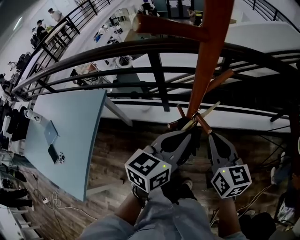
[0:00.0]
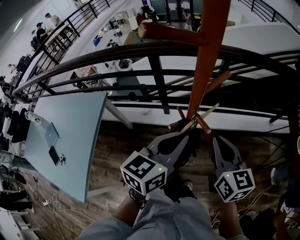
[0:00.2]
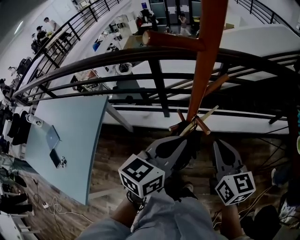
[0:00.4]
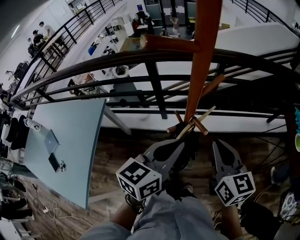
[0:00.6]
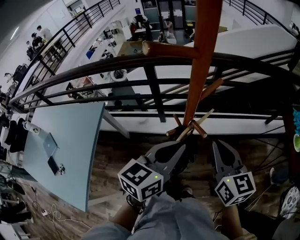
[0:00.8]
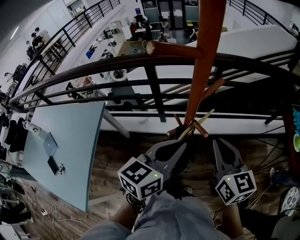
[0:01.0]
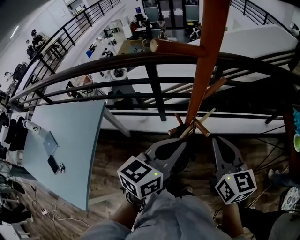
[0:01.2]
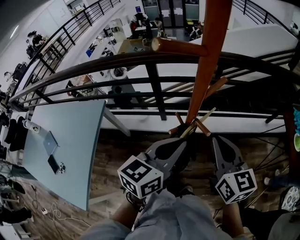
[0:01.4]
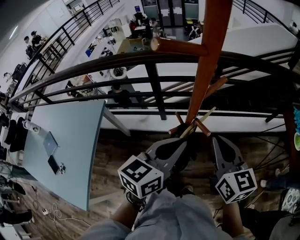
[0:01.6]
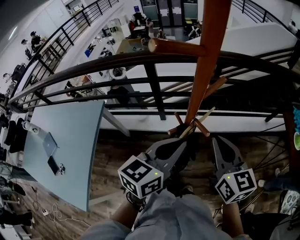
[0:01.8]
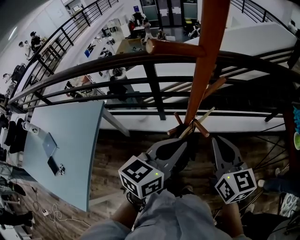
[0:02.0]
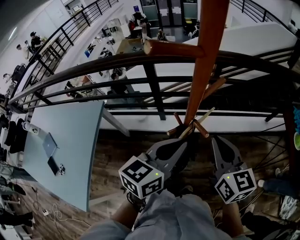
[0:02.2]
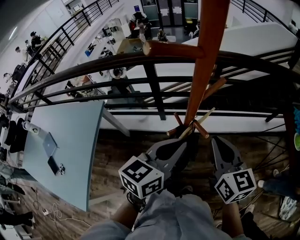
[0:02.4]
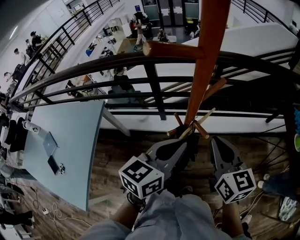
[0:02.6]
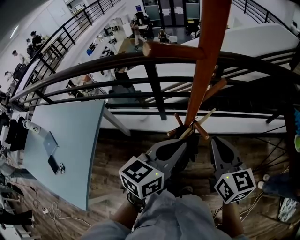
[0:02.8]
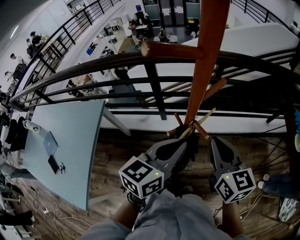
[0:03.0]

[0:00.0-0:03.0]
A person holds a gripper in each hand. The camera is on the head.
0:00.0 to 0:01.6: The right gripper travels upward by approximately 5 cm.
0:01.6 to 0:03.0: The two grippers keep their place.

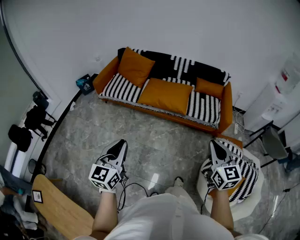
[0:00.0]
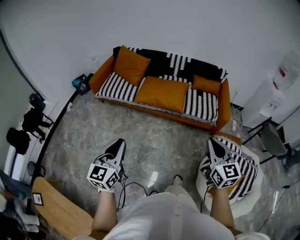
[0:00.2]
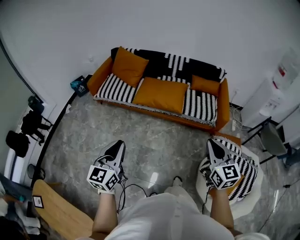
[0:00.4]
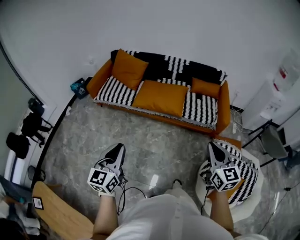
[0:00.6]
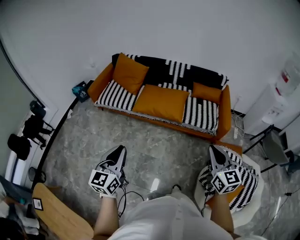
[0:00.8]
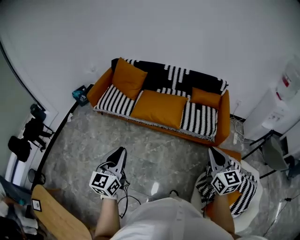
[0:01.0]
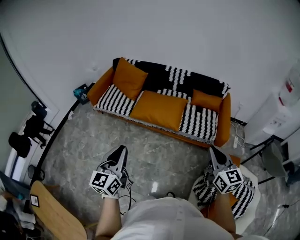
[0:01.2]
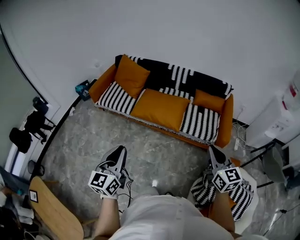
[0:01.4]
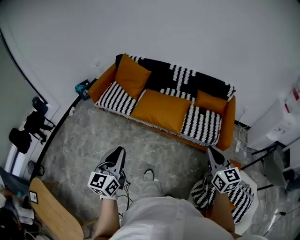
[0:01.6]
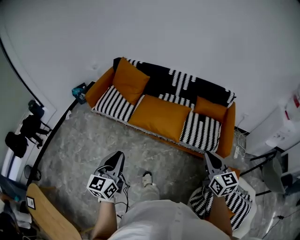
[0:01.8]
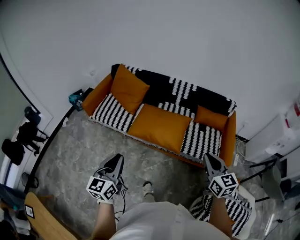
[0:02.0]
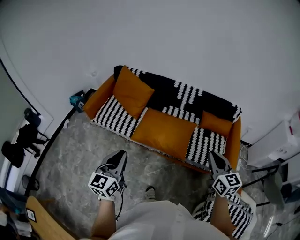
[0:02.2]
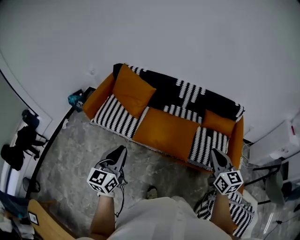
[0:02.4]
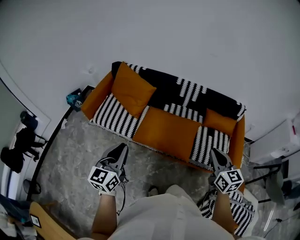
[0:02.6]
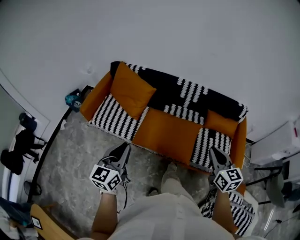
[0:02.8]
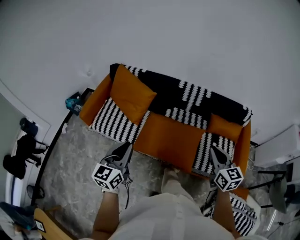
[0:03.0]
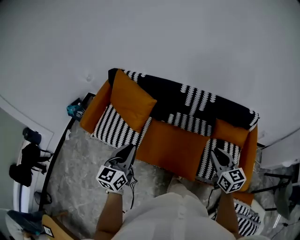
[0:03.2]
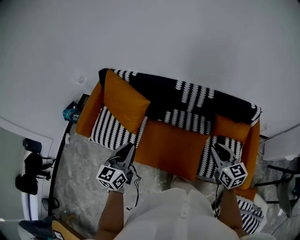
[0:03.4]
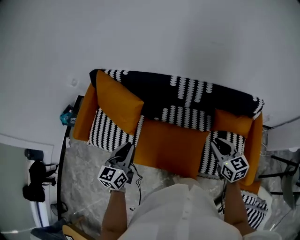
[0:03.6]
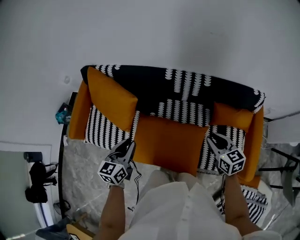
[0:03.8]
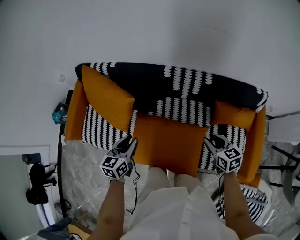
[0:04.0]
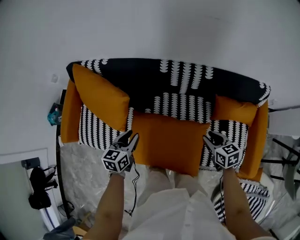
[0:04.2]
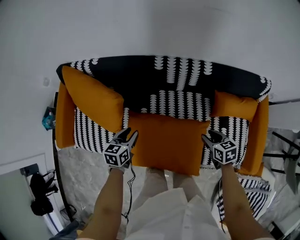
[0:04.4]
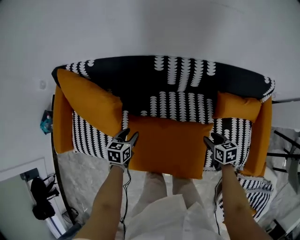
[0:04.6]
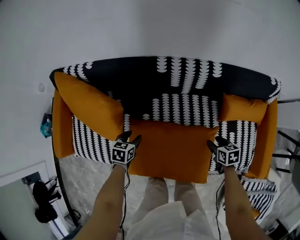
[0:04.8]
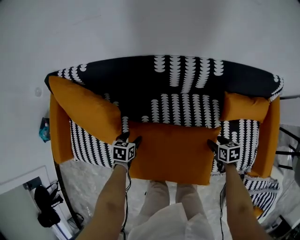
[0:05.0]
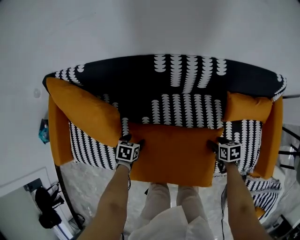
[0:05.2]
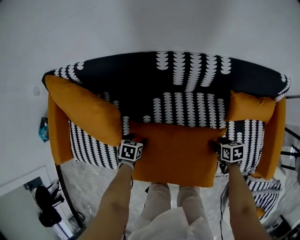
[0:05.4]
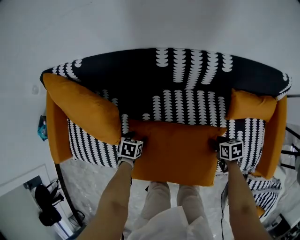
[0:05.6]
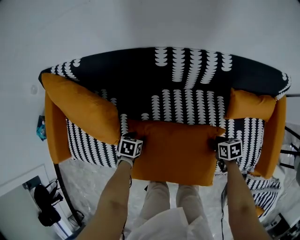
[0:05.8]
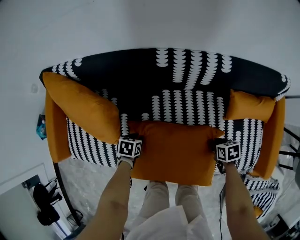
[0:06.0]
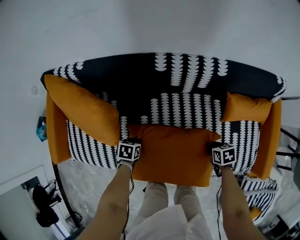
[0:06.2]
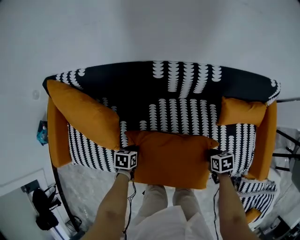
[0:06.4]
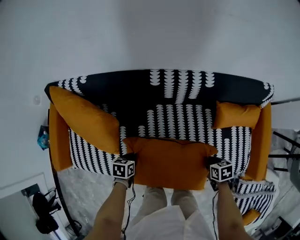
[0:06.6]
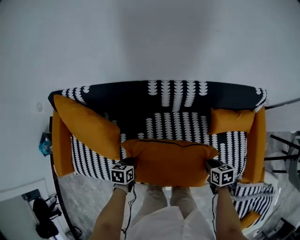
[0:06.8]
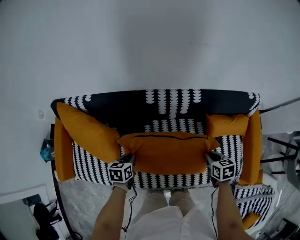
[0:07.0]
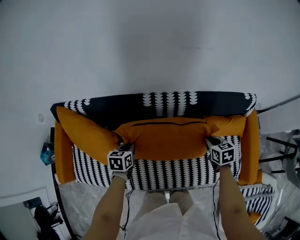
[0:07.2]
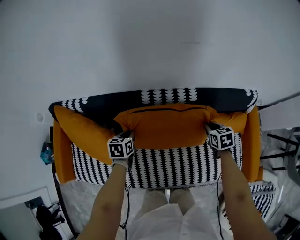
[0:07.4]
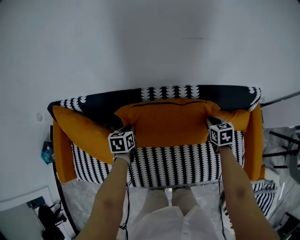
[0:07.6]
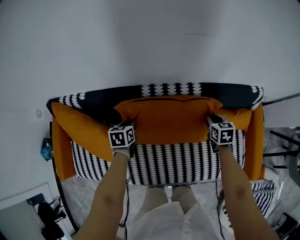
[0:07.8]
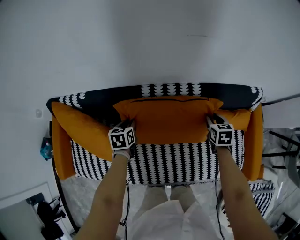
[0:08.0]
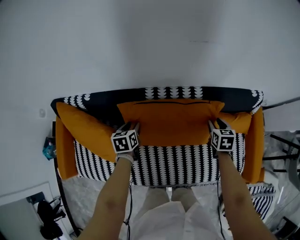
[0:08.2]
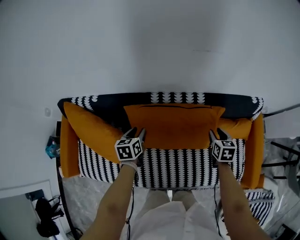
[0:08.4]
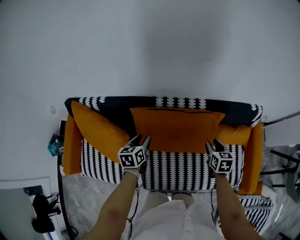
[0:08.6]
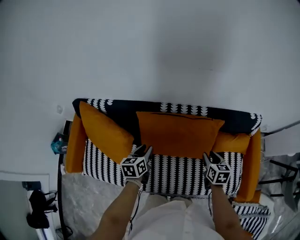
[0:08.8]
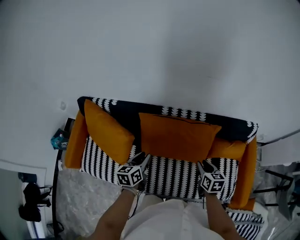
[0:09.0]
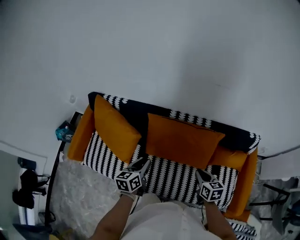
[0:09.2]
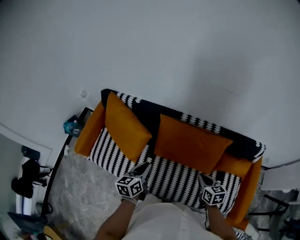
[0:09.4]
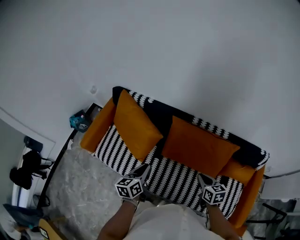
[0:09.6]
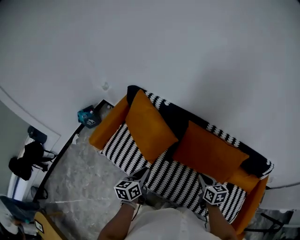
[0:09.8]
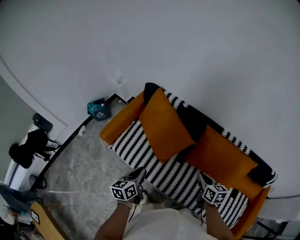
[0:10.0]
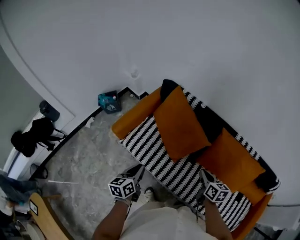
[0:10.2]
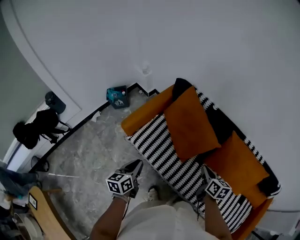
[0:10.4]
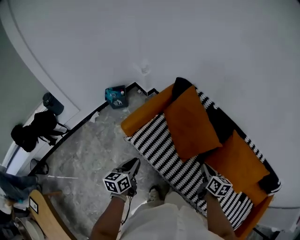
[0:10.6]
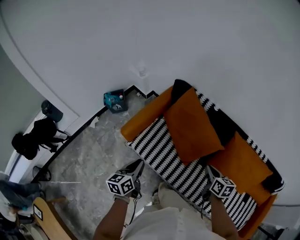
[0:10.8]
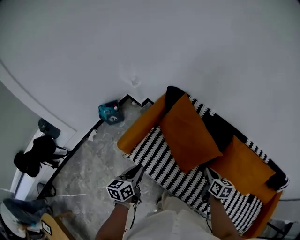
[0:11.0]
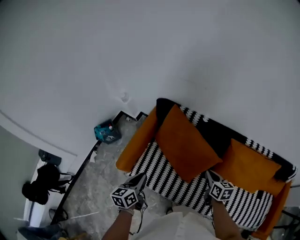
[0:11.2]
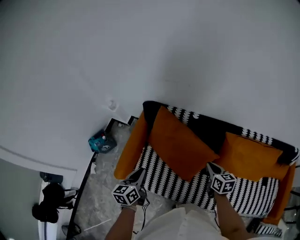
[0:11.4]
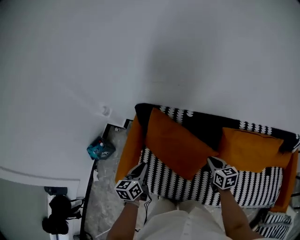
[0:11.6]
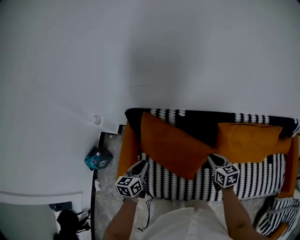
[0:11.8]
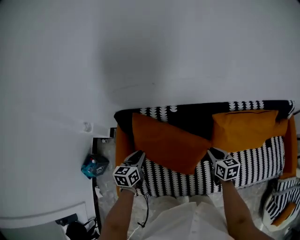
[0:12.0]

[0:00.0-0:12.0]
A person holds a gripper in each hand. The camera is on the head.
0:00.0 to 0:01.6: Both grippers move forward and to the right, about 20 cm.
0:01.6 to 0:03.0: Both grippers move forward, some 40 cm.
0:03.0 to 0:04.4: The left gripper travels forward and downward by approximately 50 cm, angles its fingers downward, by about 40 degrees, and opens up. The right gripper shifts roughly 40 cm downward and forward, tips its fingers downward by some 30 degrees, and opens.
0:04.4 to 0:06.0: Both grippers move downward, some 20 cm. The left gripper changes its angle by some 30 degrees, and opens, then closes once more, while the right gripper turns by approximately 20 degrees, and closes its fingers.
0:06.0 to 0:07.6: The left gripper moves approximately 30 cm, and swivels about 20 degrees. Meanwhile the right gripper ends up roughly 30 cm from where it was, and rotates roughly 30 degrees.
0:07.6 to 0:09.0: The left gripper travels upward and backward by roughly 20 cm, swivels about 20 degrees, and opens. Meanwhile the right gripper shifts some 20 cm backward and upward, and opens.
0:09.0 to 0:10.4: Both grippers are carried some 50 cm. The left gripper swivels roughly 30 degrees. The right gripper changes its angle by some 30 degrees, and closes.
0:10.4 to 0:12.0: The right gripper shifts by approximately 20 cm, and changes its angle by approximately 30 degrees. Meanwhile the left gripper shifts by about 40 cm, and rotates some 50 degrees.

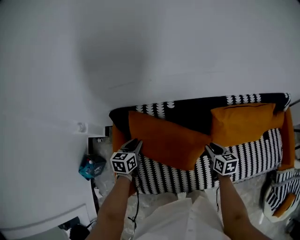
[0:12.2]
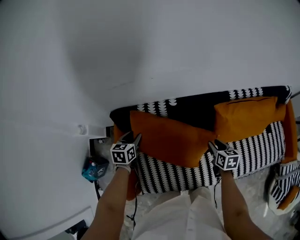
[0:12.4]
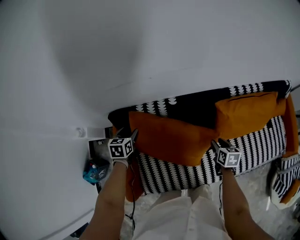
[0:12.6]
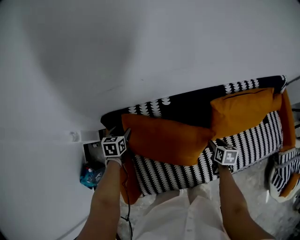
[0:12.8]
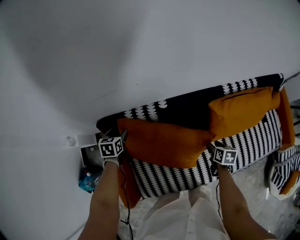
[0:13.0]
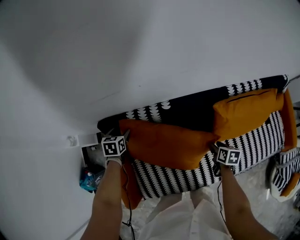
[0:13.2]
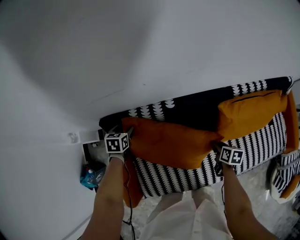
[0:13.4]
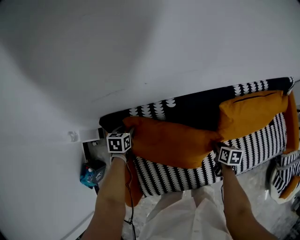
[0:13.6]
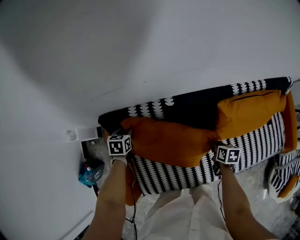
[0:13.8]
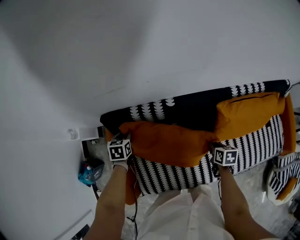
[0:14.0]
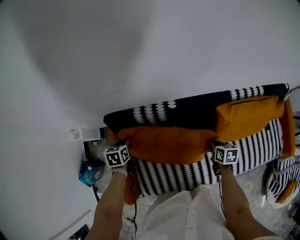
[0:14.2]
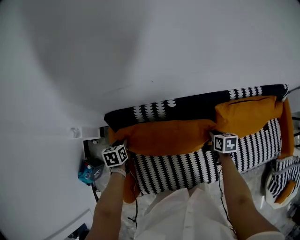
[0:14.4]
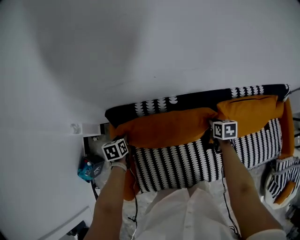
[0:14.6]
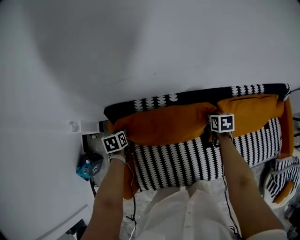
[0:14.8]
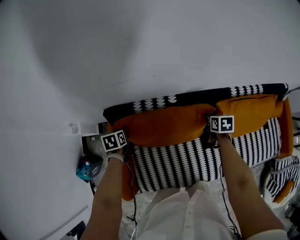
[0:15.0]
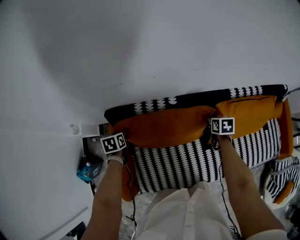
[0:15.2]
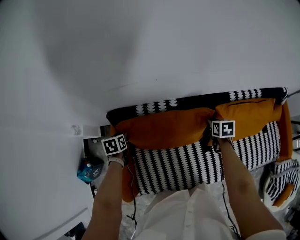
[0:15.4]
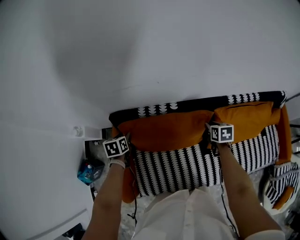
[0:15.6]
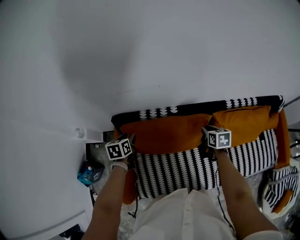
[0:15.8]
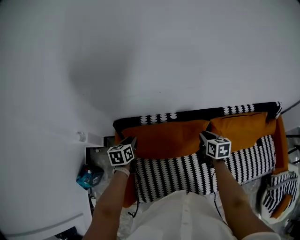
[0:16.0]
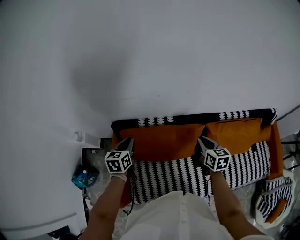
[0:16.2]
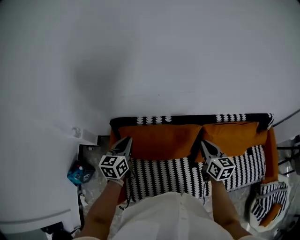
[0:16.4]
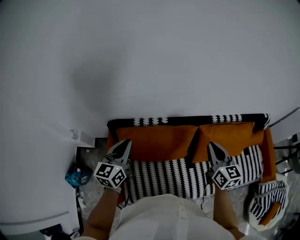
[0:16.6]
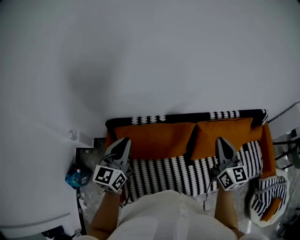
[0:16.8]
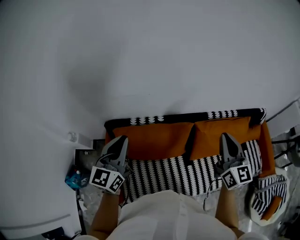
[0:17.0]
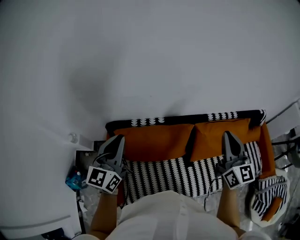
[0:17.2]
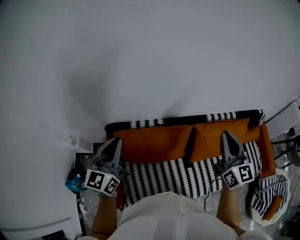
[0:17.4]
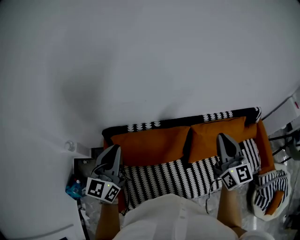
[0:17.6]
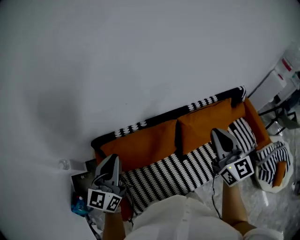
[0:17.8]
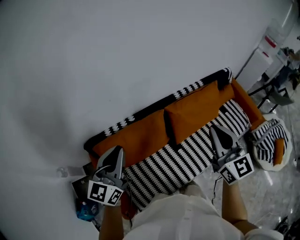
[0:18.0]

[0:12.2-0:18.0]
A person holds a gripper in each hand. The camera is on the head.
0:12.2 to 0:13.6: The right gripper is displaced downward by about 10 cm, swivels roughly 30 degrees, and opens and closes again; the left gripper heads forward, downward and to the left, covering some 20 cm, and opens, then closes once more.
0:13.6 to 0:15.0: The right gripper heads forward and upward, covering about 15 cm. Meanwhile the left gripper is displaced to the left by about 5 cm.
0:15.0 to 0:16.6: The left gripper moves upward, roughly 30 cm, tips its fingers upward by about 50 degrees, and closes, while the right gripper is displaced upward and backward by approximately 35 cm, and points its fingers some 40 degrees further upward.
0:16.6 to 0:18.0: The right gripper shifts roughly 15 cm upward, backward and to the right, and turns by approximately 30 degrees. Meanwhile the left gripper is displaced to the right and upward by about 10 cm, and swivels approximately 30 degrees.

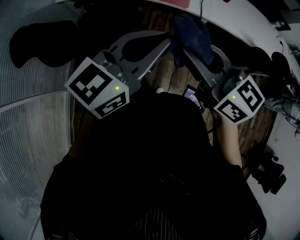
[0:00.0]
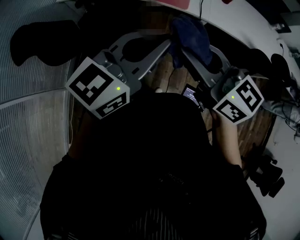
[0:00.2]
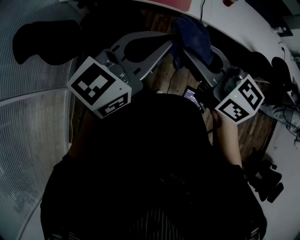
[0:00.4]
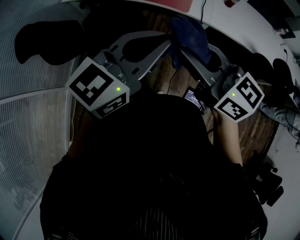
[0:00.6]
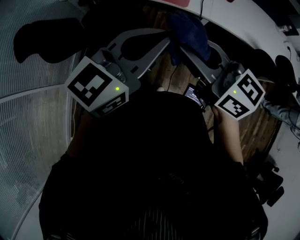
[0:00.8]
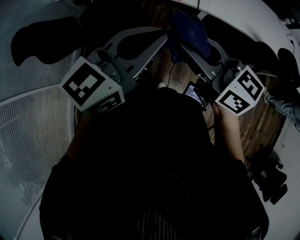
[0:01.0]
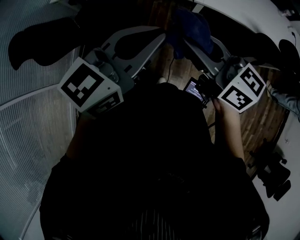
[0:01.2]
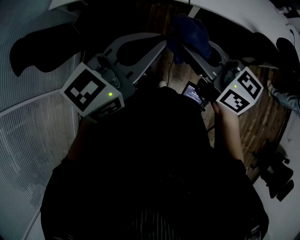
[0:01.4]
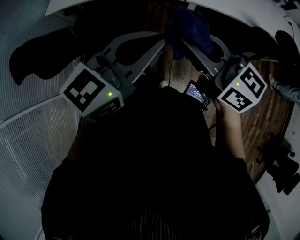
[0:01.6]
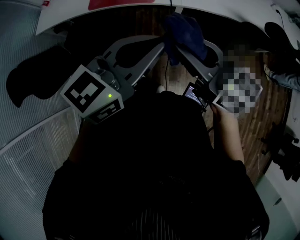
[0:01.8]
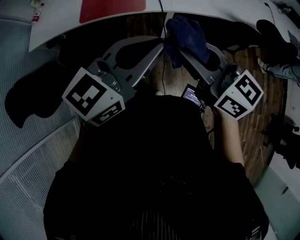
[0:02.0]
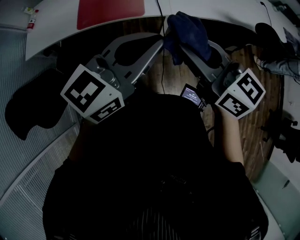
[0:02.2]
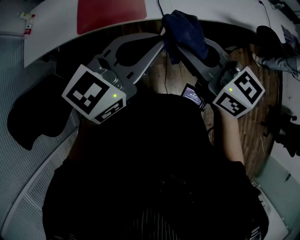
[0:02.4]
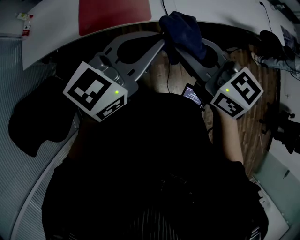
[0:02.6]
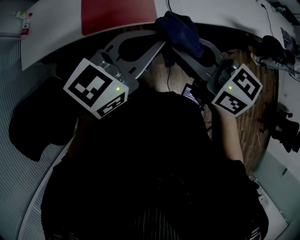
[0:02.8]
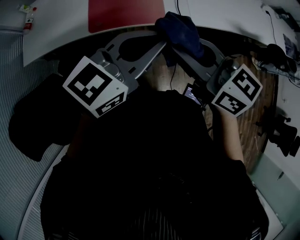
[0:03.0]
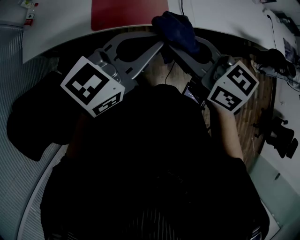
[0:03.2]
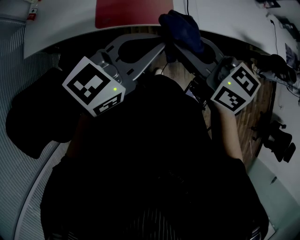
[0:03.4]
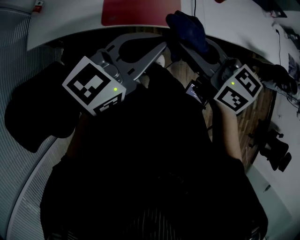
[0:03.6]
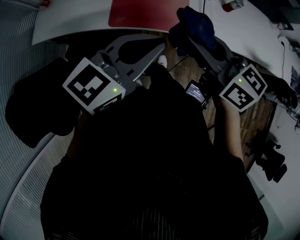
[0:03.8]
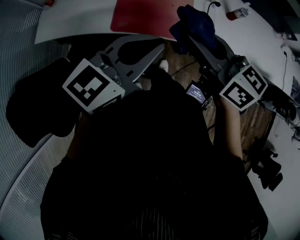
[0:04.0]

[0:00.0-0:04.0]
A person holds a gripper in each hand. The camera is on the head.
0:00.0 to 0:01.4: Both grippers move to the right, roughly 10 cm.
0:01.4 to 0:02.6: Both grippers move forward, about 20 cm. The right gripper swivels roughly 20 degrees.
0:02.6 to 0:04.0: The left gripper shifts about 15 cm to the left and forward; the right gripper goes roughly 15 cm forward and to the left.
